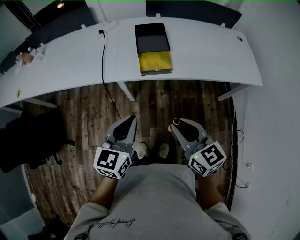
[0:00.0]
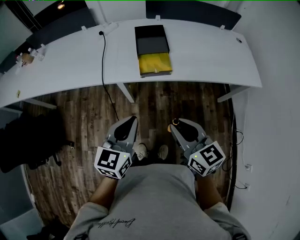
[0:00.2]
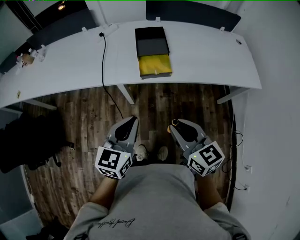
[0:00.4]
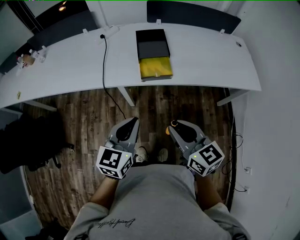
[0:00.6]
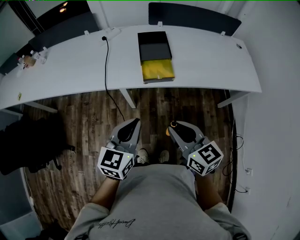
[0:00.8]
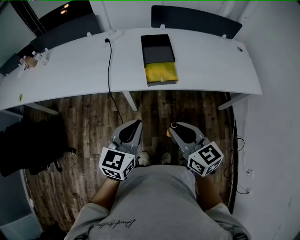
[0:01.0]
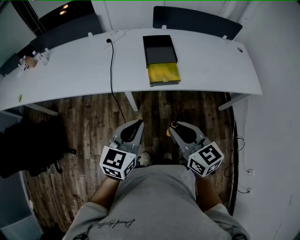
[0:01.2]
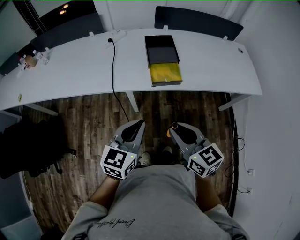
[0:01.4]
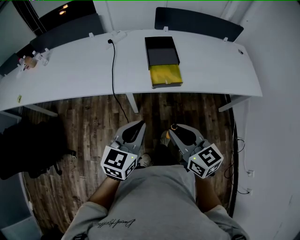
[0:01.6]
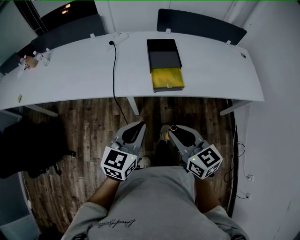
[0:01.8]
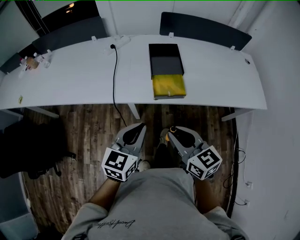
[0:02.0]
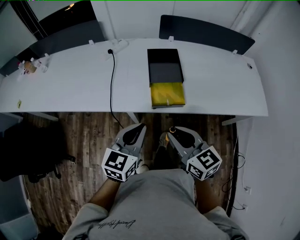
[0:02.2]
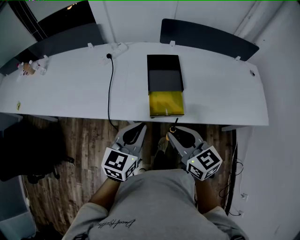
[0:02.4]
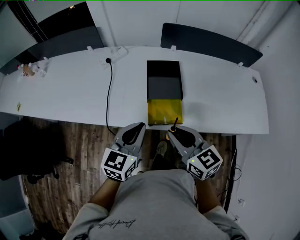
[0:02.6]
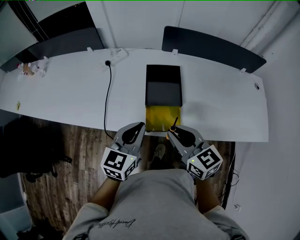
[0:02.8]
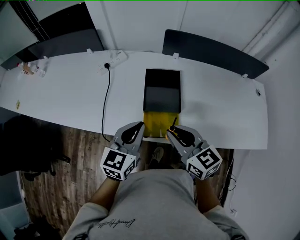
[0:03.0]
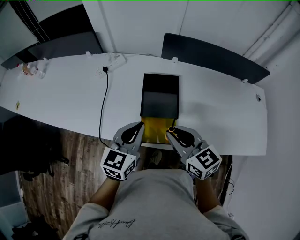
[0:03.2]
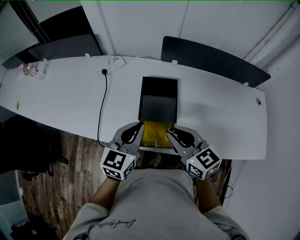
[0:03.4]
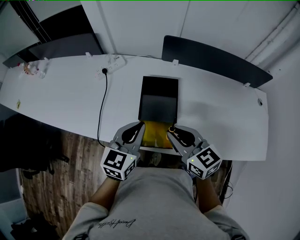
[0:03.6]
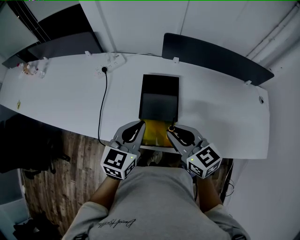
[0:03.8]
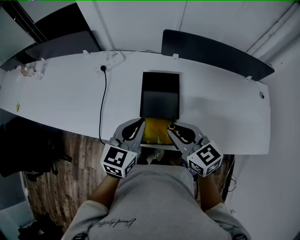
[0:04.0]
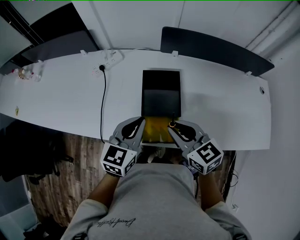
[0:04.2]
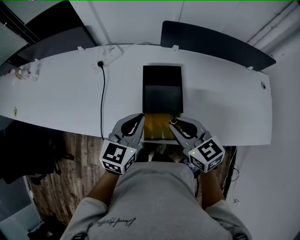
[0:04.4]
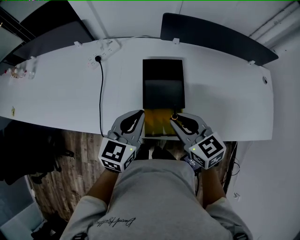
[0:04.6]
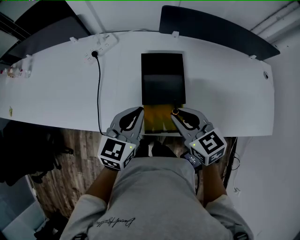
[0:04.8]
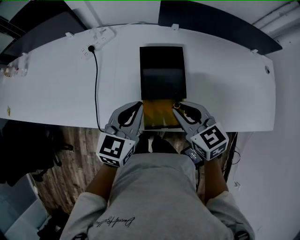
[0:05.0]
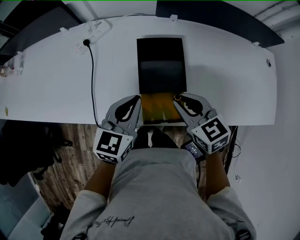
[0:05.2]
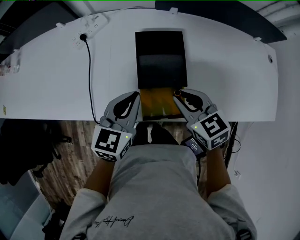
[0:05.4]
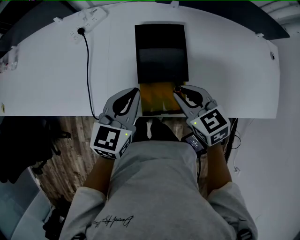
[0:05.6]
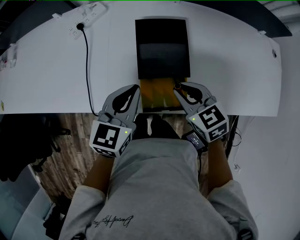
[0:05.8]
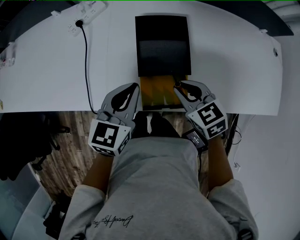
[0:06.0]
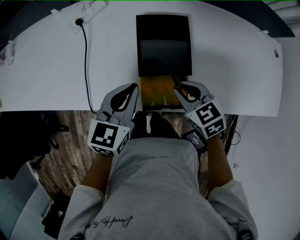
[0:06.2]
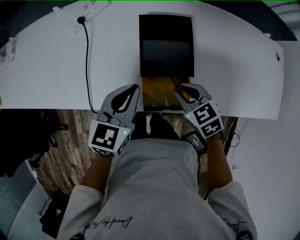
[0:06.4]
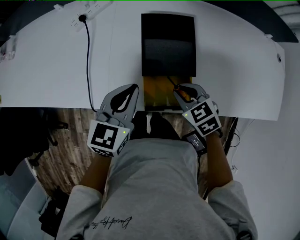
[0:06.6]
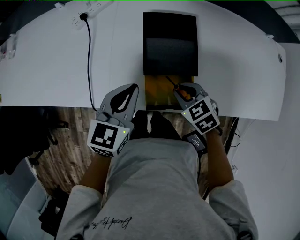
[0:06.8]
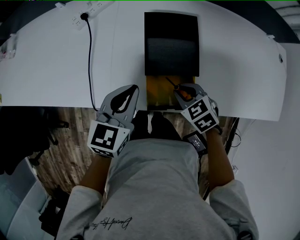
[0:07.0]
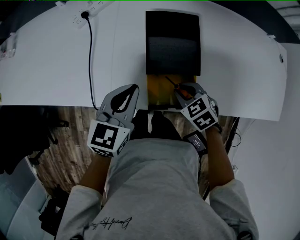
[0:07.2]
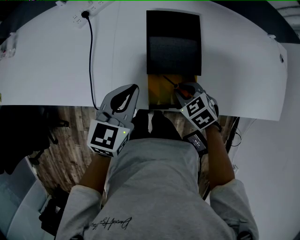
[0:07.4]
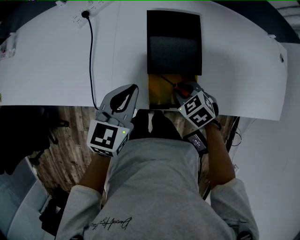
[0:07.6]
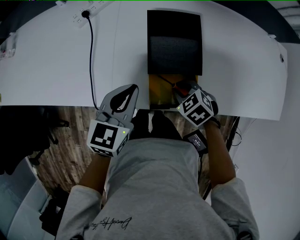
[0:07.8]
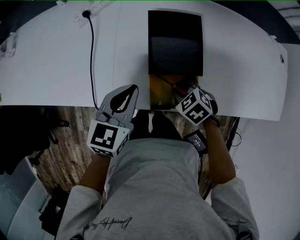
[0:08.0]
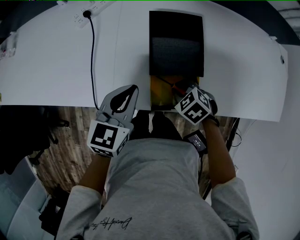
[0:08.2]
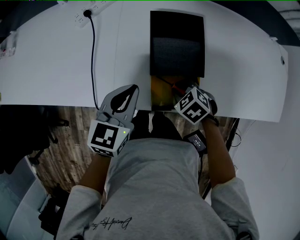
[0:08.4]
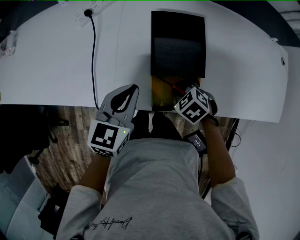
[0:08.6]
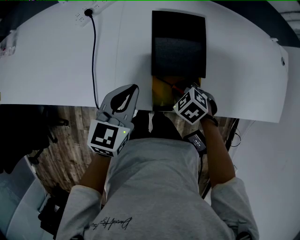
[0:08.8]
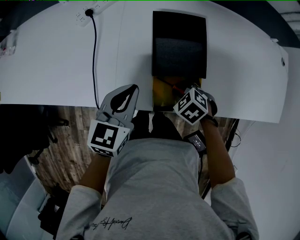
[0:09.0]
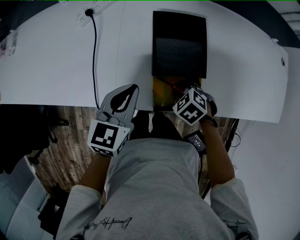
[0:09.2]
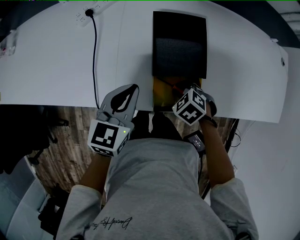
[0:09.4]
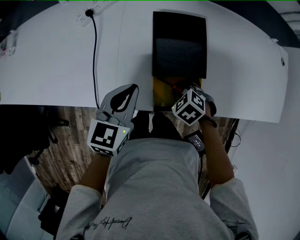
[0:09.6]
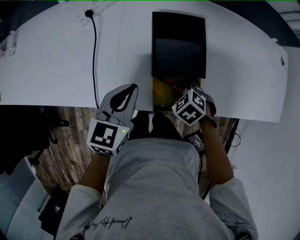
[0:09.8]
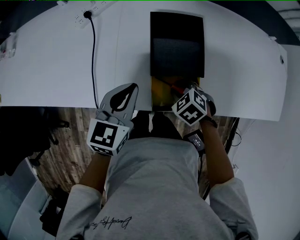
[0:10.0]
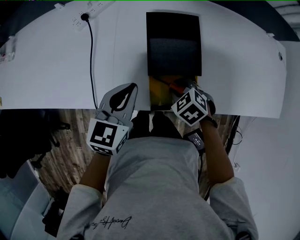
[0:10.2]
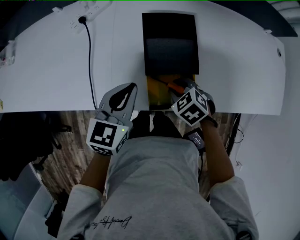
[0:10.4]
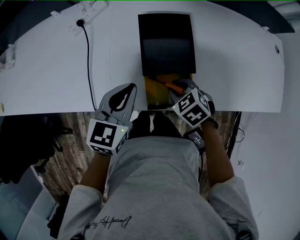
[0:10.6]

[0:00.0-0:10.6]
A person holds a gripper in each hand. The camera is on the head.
0:00.0 to 0:01.6: The right gripper is displaced to the left by roughly 5 cm.
0:01.6 to 0:03.0: The grippers both shift forward by roughly 30 cm.
0:03.0 to 0:04.6: Both grippers travel together forward, about 5 cm.
0:04.6 to 0:06.0: The right gripper travels downward by some 10 cm. The left gripper travels downward by roughly 5 cm.
0:06.0 to 0:07.6: The right gripper shifts about 10 cm downward, and changes its angle by approximately 20 degrees.
0:07.6 to 0:10.6: The grippers make only small movements.

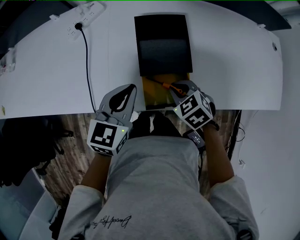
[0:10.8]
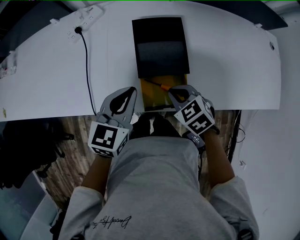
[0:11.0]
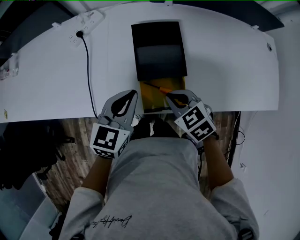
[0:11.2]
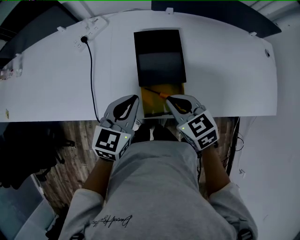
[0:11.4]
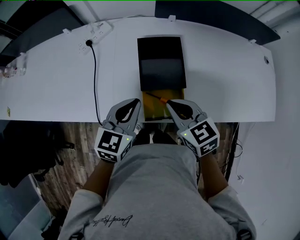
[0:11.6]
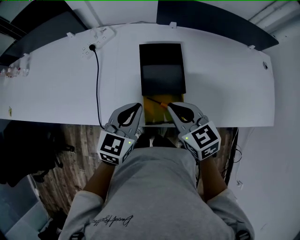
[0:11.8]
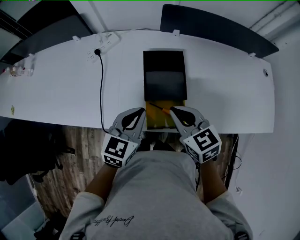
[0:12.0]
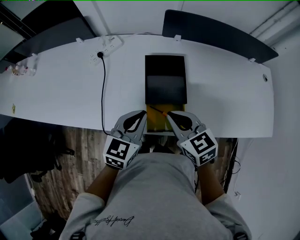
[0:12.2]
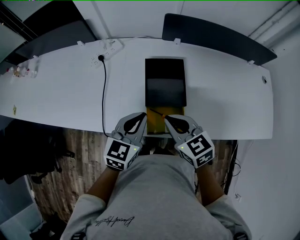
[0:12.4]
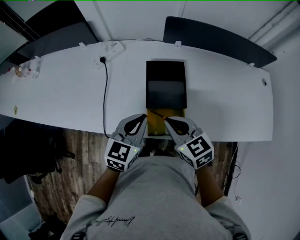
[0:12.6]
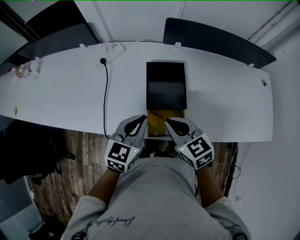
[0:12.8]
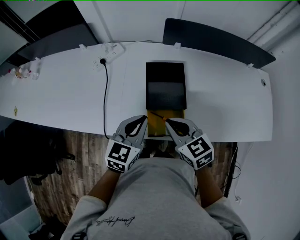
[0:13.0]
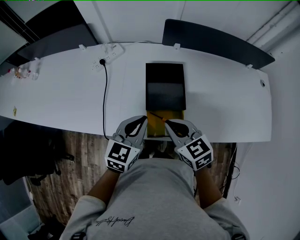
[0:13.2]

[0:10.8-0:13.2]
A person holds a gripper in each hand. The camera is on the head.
0:10.8 to 0:12.0: The left gripper changes place by about 5 cm. The right gripper travels upward by about 15 cm, and changes its angle by approximately 30 degrees.
0:12.0 to 0:13.2: There are only small adjustments of the grippers.

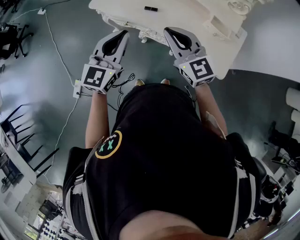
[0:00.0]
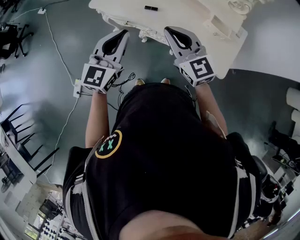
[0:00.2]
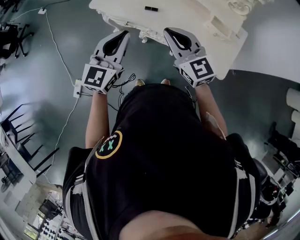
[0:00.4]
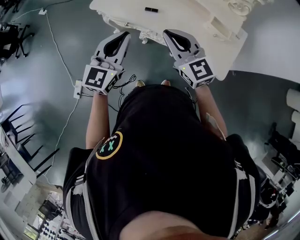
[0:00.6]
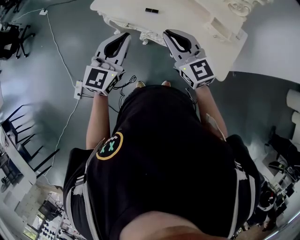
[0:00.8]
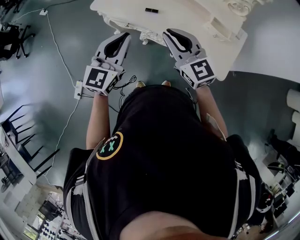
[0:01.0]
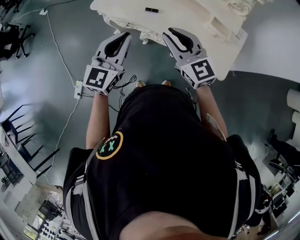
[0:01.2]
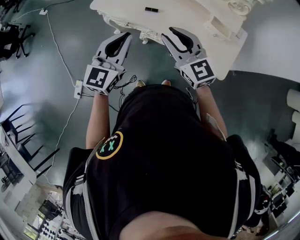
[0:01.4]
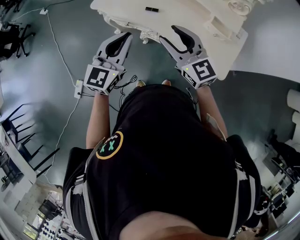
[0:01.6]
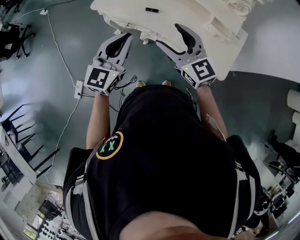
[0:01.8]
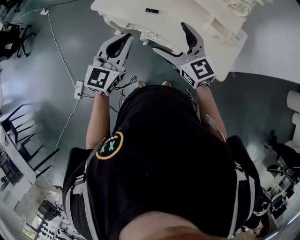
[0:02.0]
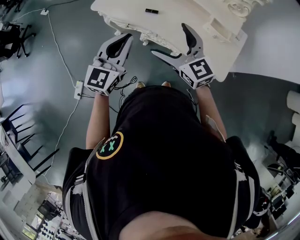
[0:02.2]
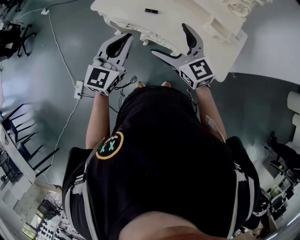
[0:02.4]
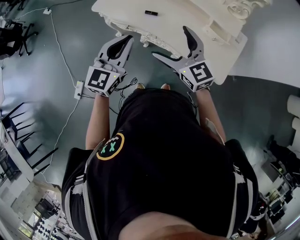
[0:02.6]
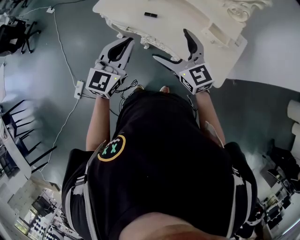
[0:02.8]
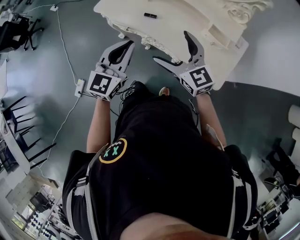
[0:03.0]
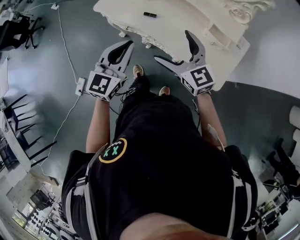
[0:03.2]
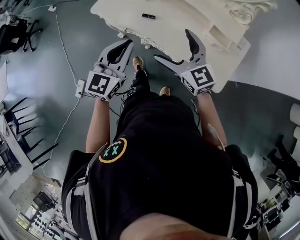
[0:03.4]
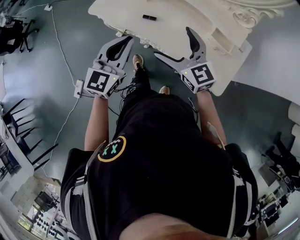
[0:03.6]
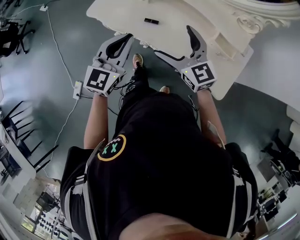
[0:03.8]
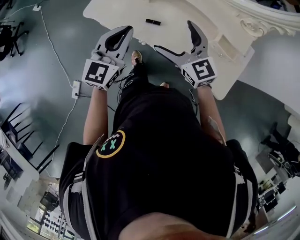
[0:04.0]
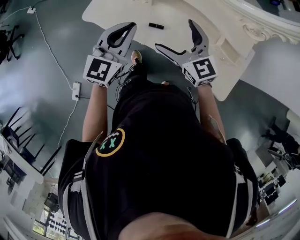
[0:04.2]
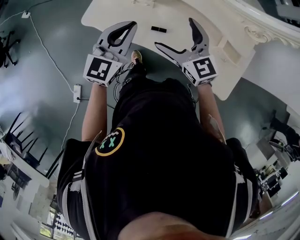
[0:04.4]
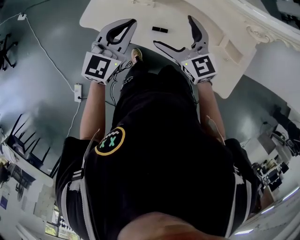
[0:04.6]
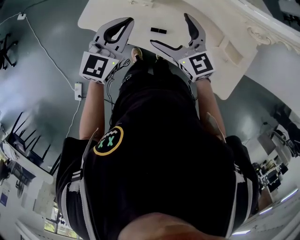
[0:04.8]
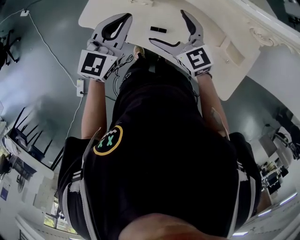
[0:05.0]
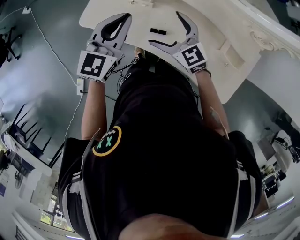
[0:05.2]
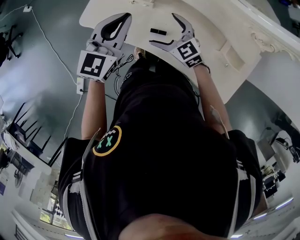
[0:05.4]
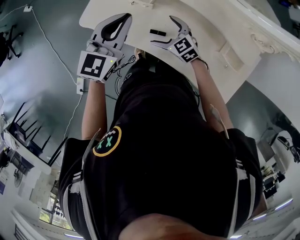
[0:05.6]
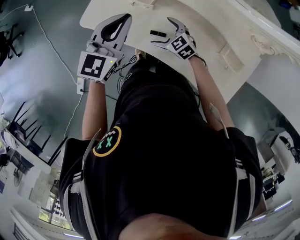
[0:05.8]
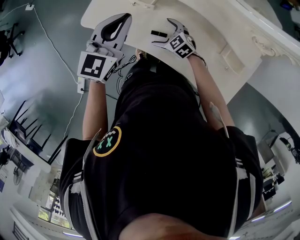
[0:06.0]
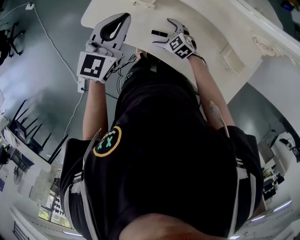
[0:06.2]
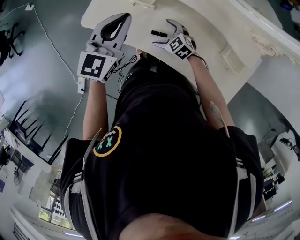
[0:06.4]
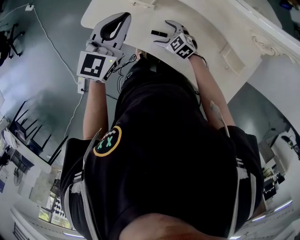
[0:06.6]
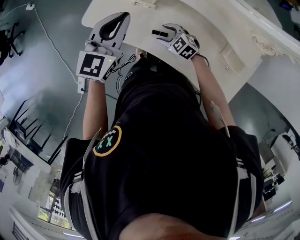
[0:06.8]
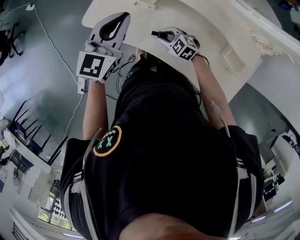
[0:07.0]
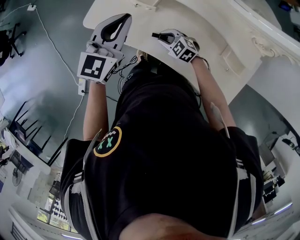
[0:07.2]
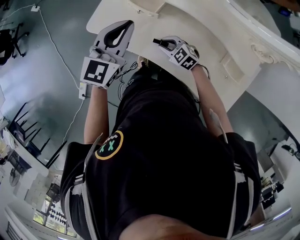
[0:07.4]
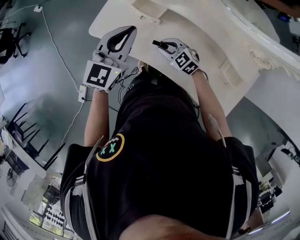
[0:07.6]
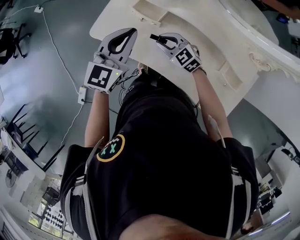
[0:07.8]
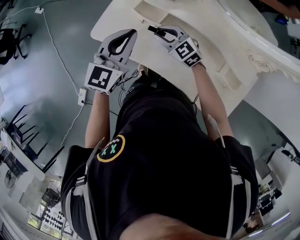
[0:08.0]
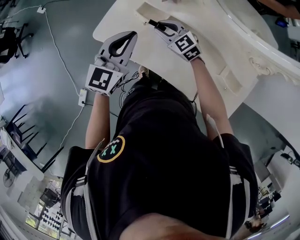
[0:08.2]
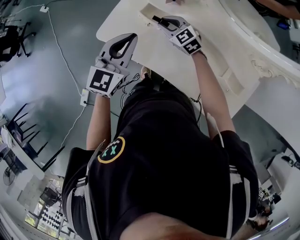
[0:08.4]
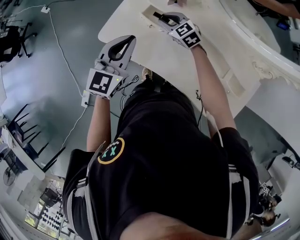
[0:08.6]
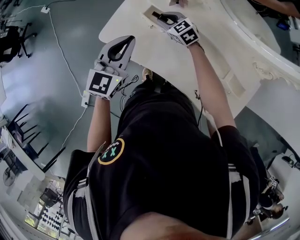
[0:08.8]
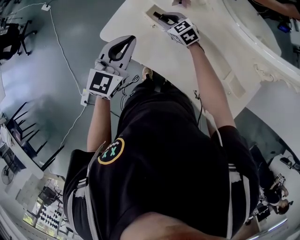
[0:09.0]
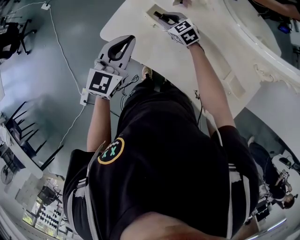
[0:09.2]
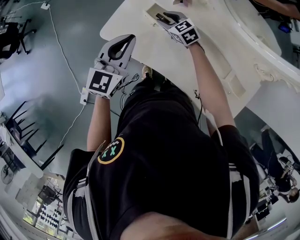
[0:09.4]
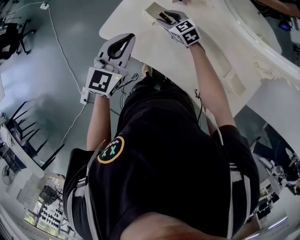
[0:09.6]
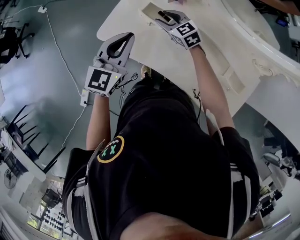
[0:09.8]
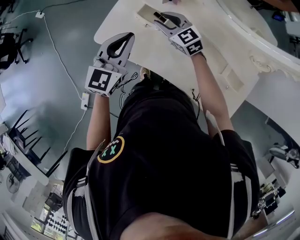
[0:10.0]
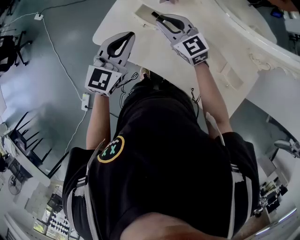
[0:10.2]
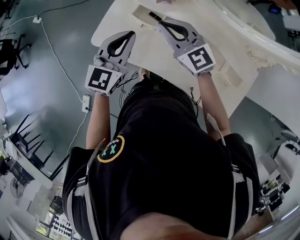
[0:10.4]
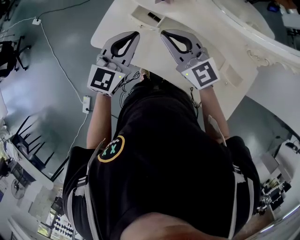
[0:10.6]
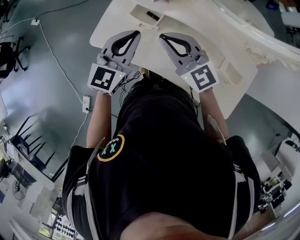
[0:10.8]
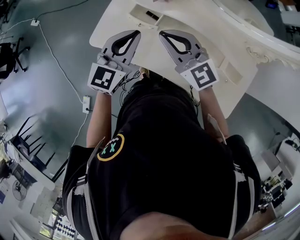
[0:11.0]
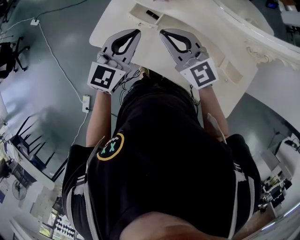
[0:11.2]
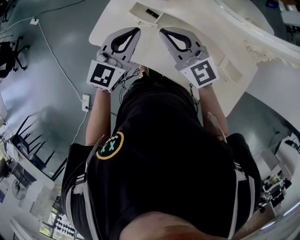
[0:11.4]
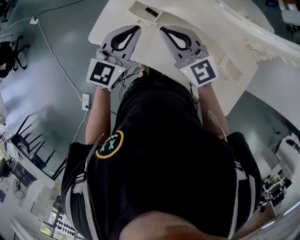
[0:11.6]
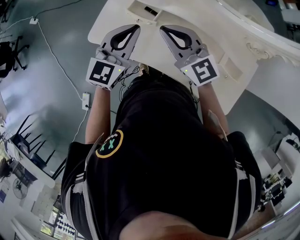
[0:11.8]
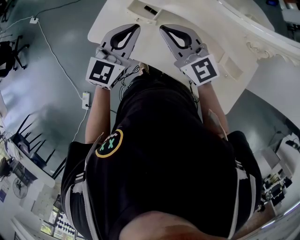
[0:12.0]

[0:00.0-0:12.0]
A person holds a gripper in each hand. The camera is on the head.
0:00.0 to 0:01.6: The right gripper opens its fingers.
0:01.6 to 0:03.0: The two grippers go approximately 5 cm to the right. The right gripper opens.
0:03.0 to 0:04.4: The grippers both shift forward by roughly 25 cm.
0:04.4 to 0:06.0: The right gripper is displaced downward by about 25 cm, and changes its angle by about 40 degrees; the left gripper is displaced forward by roughly 5 cm.
0:06.0 to 0:07.6: The right gripper closes.
0:07.6 to 0:09.0: The right gripper is displaced forward by roughly 20 cm.
0:09.0 to 0:10.4: The right gripper heads upward and backward, covering some 20 cm, and turns by some 30 degrees.
0:10.4 to 0:12.0: The right gripper travels backward by some 5 cm.
